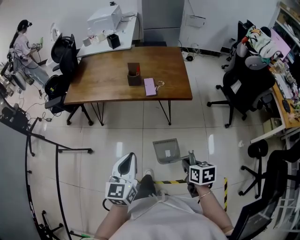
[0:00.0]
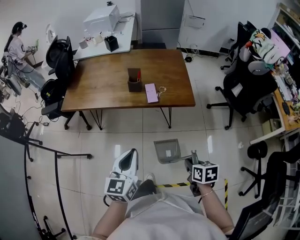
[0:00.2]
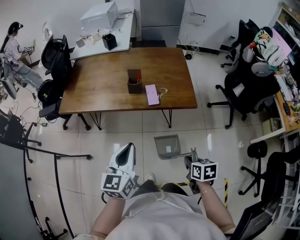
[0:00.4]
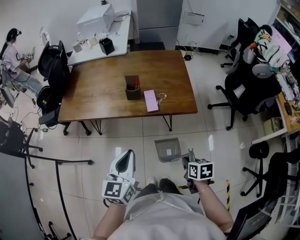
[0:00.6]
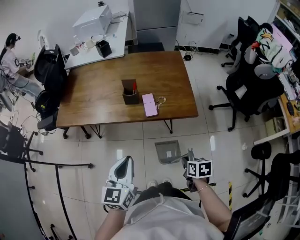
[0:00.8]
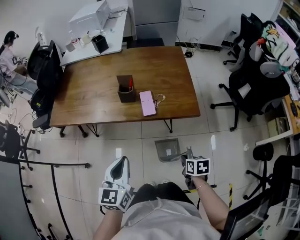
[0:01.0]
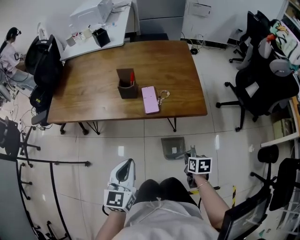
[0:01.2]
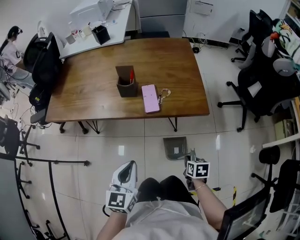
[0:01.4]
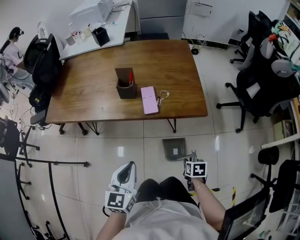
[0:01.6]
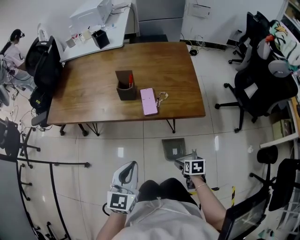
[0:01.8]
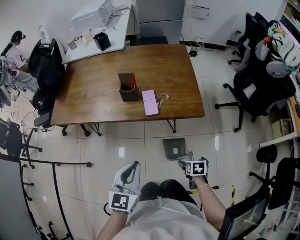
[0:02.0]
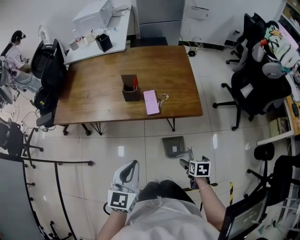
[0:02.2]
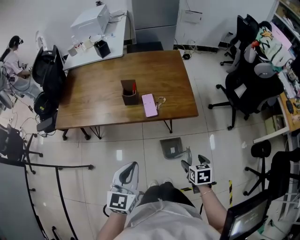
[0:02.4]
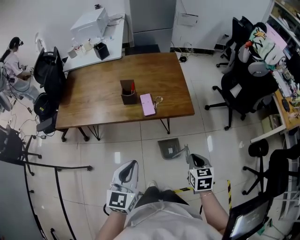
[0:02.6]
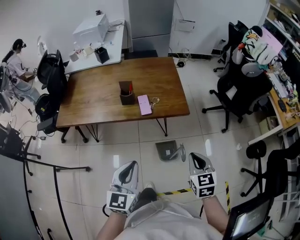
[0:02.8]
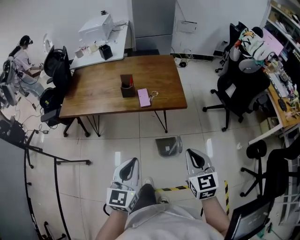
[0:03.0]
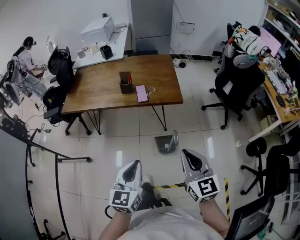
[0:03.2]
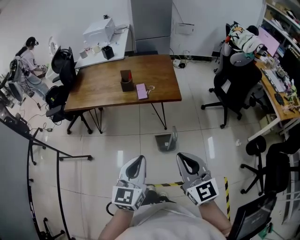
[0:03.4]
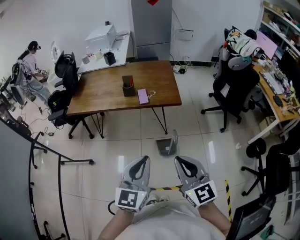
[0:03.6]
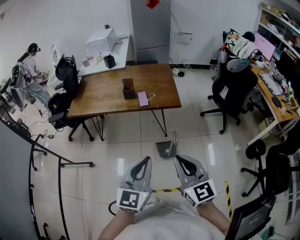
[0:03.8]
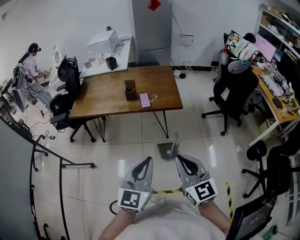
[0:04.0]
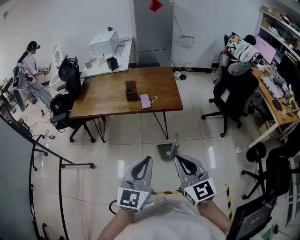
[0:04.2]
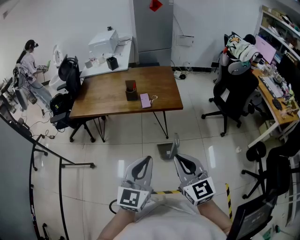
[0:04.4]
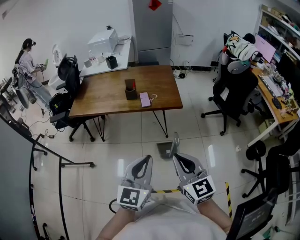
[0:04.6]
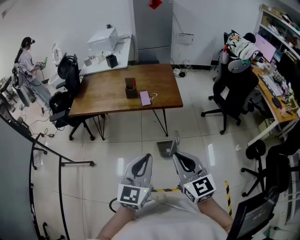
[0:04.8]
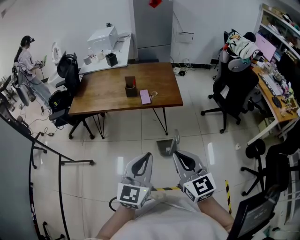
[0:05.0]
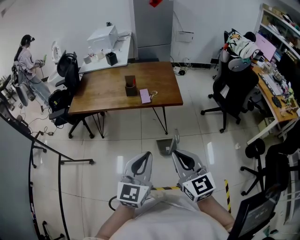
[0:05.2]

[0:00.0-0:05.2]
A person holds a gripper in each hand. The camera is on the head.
0:00.0 to 0:01.8: The left gripper is displaced forward and downward by approximately 20 cm. The right gripper is displaced downward and forward by approximately 30 cm, and opens.
0:01.8 to 0:03.4: The right gripper heads upward and backward, covering some 50 cm, points its fingers some 60 degrees further upward, and closes its fingers. Meanwhile the left gripper moves backward and upward, about 30 cm.
0:03.4 to 0:05.2: The grippers stay close to where they were, moving slightly.

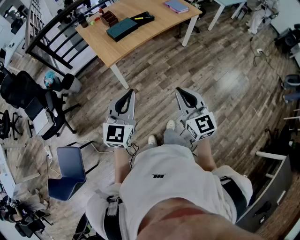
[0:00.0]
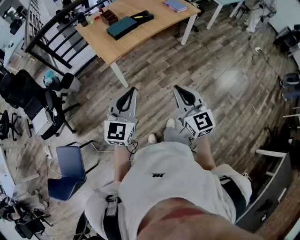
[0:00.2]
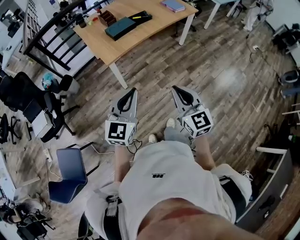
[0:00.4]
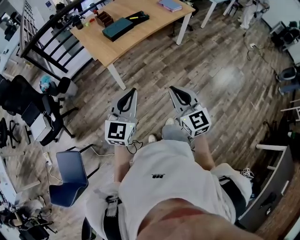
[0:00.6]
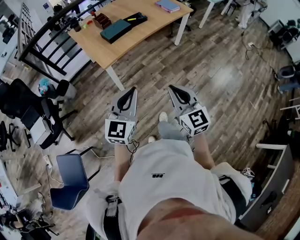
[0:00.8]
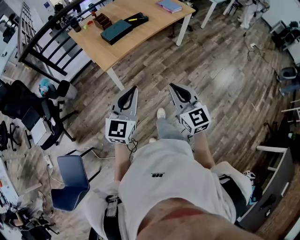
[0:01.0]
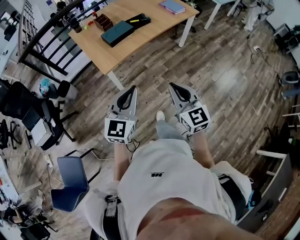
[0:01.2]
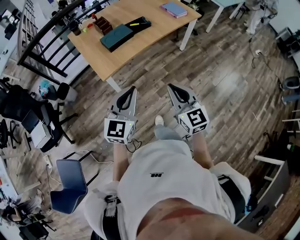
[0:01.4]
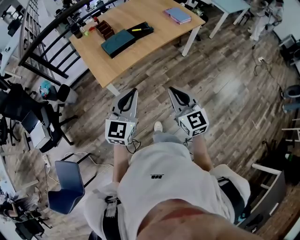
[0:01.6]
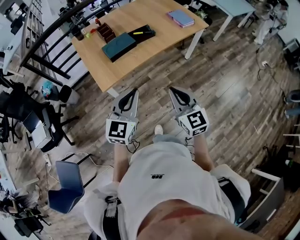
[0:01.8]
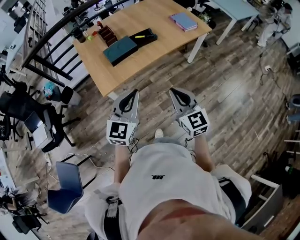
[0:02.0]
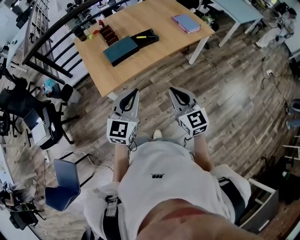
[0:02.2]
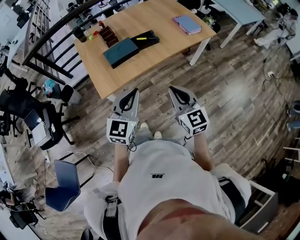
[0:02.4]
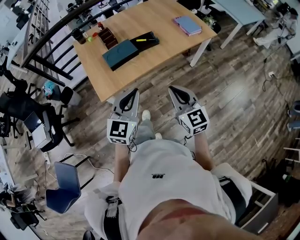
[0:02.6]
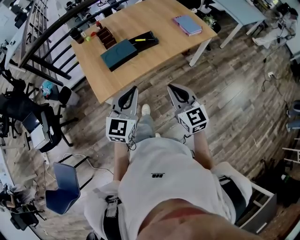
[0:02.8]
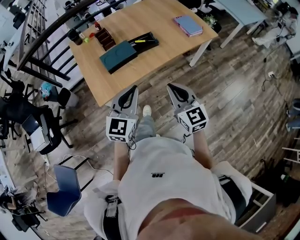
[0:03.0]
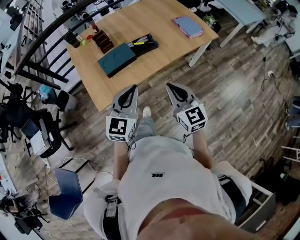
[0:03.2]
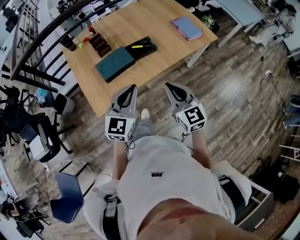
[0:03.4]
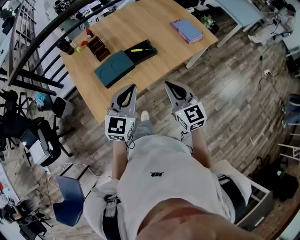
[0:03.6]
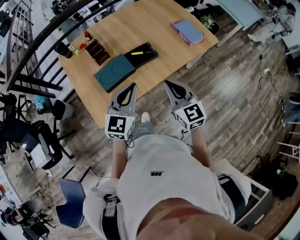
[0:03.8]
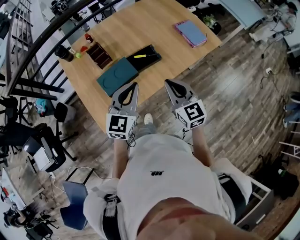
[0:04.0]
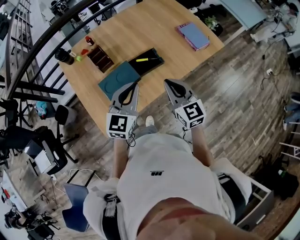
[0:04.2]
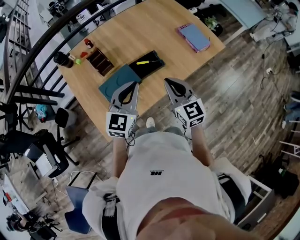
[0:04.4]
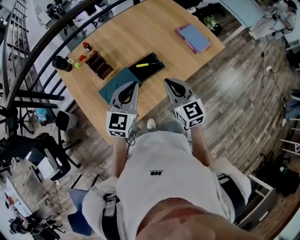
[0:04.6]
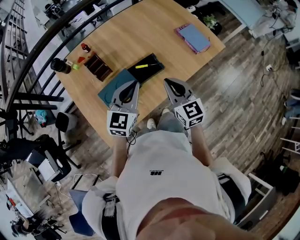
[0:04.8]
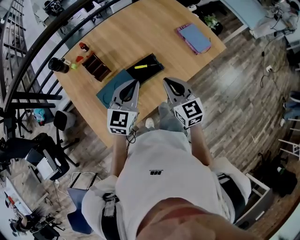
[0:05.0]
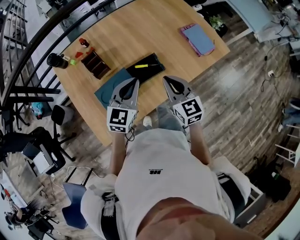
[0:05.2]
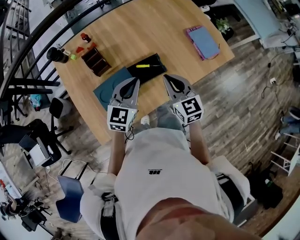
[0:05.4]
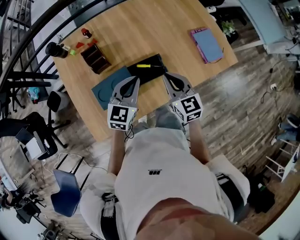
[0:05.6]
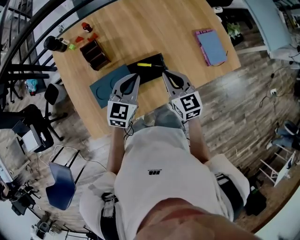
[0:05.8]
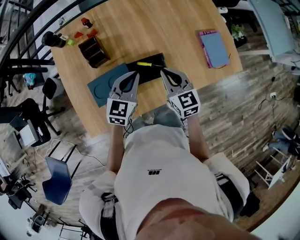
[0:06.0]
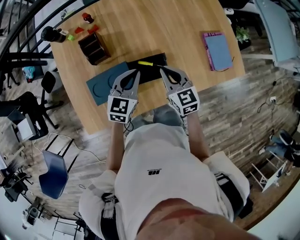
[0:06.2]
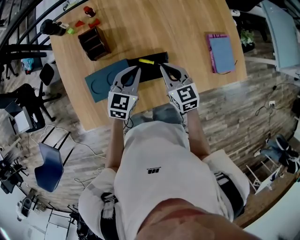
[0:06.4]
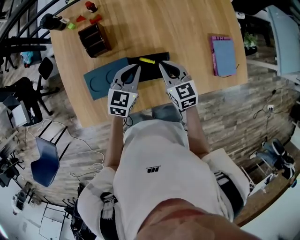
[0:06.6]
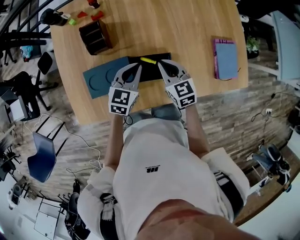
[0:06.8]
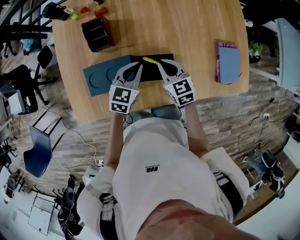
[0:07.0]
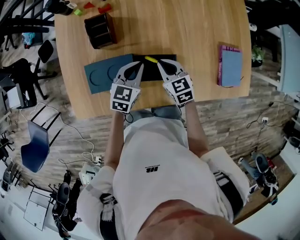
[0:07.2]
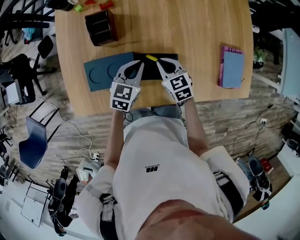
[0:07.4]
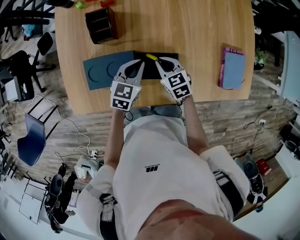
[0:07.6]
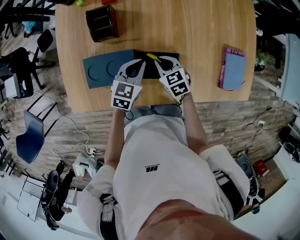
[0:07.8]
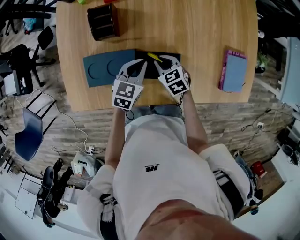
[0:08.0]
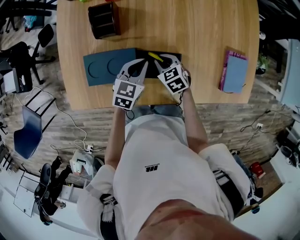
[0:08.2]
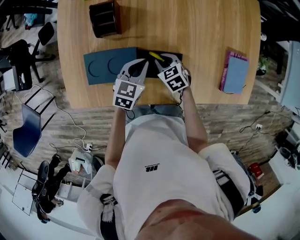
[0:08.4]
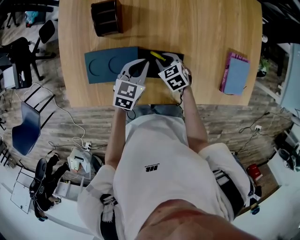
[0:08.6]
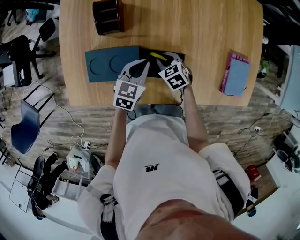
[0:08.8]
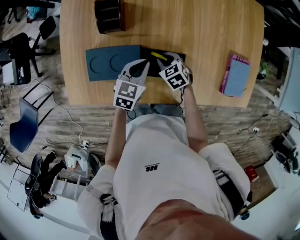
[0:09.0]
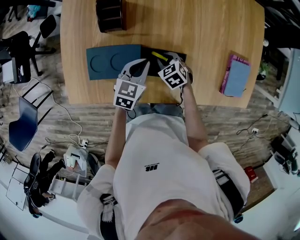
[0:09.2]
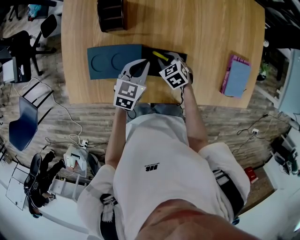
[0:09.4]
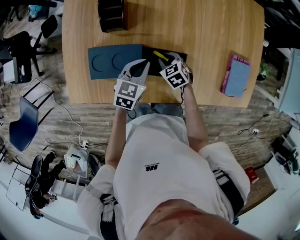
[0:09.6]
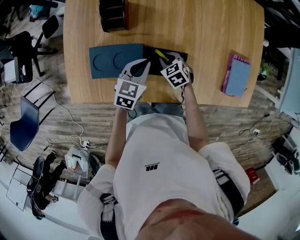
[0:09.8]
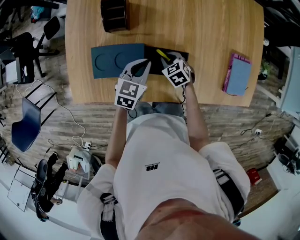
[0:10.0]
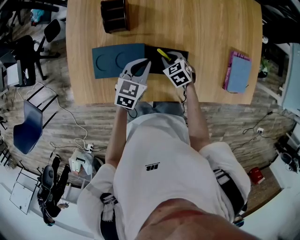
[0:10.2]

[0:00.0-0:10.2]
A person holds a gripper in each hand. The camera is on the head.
0:00.0 to 0:01.4: The grippers both shift forward by approximately 15 cm.
0:01.4 to 0:03.0: The two grippers go some 25 cm forward.
0:03.0 to 0:04.4: The grippers both shift forward by about 30 cm.
0:04.4 to 0:05.8: The grippers both shift forward and downward by some 20 cm.
0:05.8 to 0:07.2: The grippers both shift downward and forward by roughly 15 cm. The right gripper rotates some 30 degrees. The left gripper swivels about 20 degrees.
0:07.2 to 0:08.8: The right gripper shifts roughly 10 cm downward, and turns by about 30 degrees.
0:08.8 to 0:10.2: The grippers stay close to where they were, moving slightly.

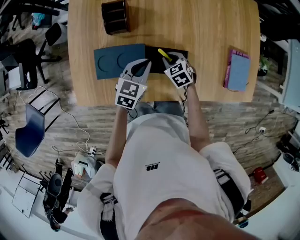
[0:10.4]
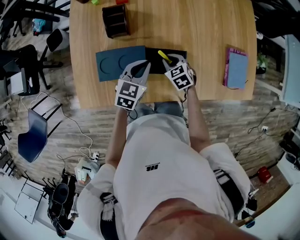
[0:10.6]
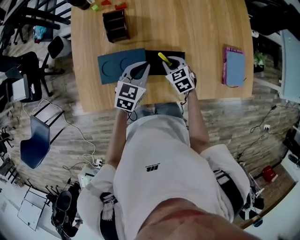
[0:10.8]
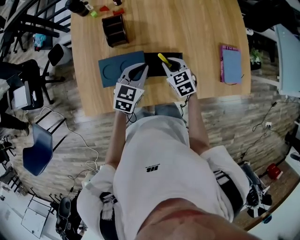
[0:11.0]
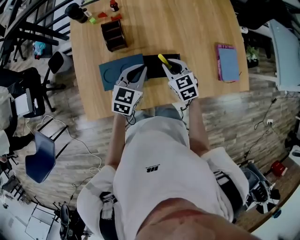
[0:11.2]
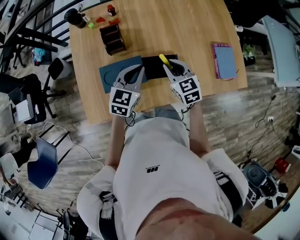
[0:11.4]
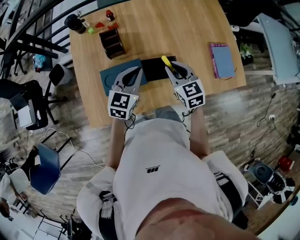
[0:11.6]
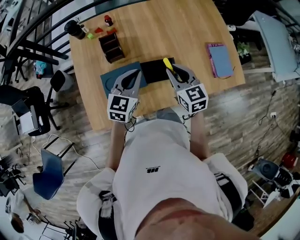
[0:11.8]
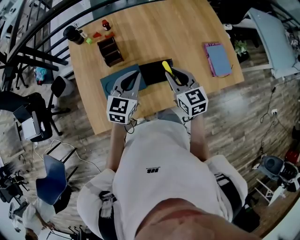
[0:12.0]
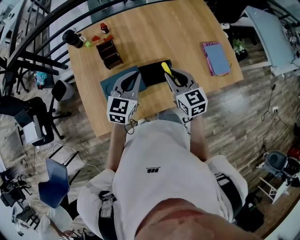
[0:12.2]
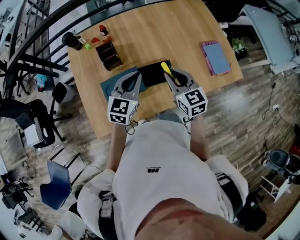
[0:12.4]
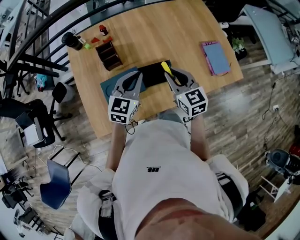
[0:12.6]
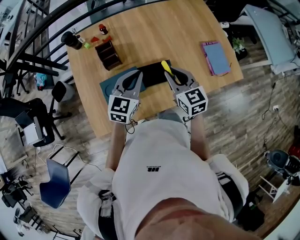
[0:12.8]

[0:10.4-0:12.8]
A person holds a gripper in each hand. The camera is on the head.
0:10.4 to 0:11.6: The left gripper travels upward by some 15 cm, while the right gripper travels upward by roughly 25 cm, and changes its angle by about 30 degrees.
0:11.6 to 0:12.8: The right gripper travels upward by some 5 cm.

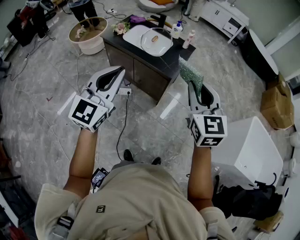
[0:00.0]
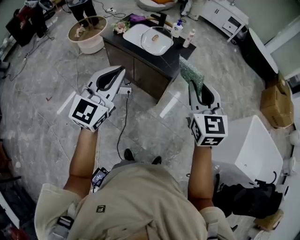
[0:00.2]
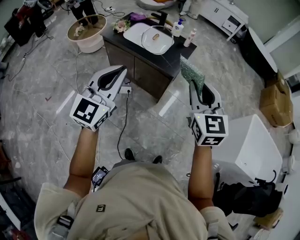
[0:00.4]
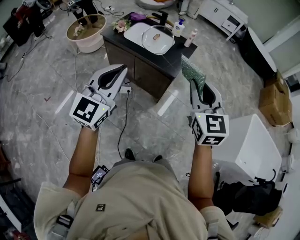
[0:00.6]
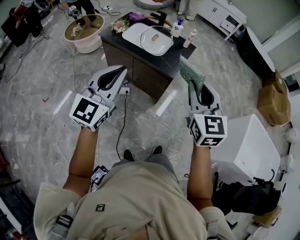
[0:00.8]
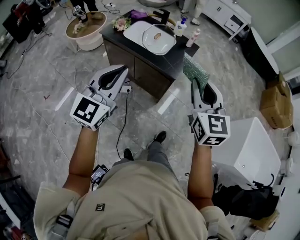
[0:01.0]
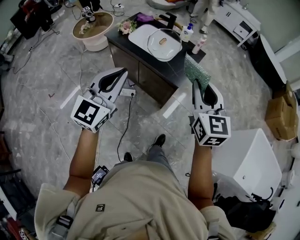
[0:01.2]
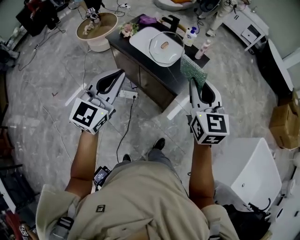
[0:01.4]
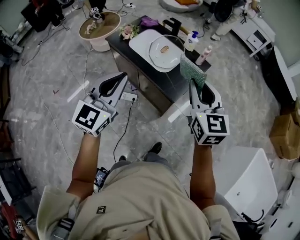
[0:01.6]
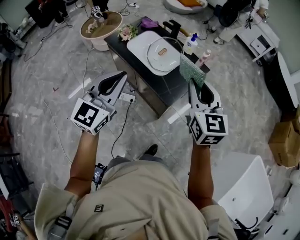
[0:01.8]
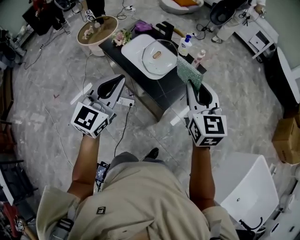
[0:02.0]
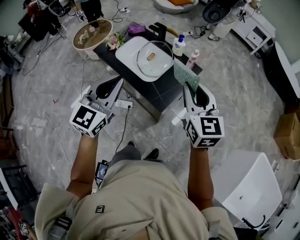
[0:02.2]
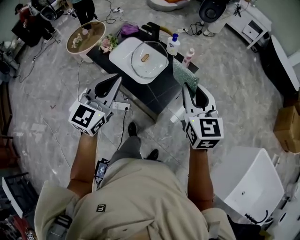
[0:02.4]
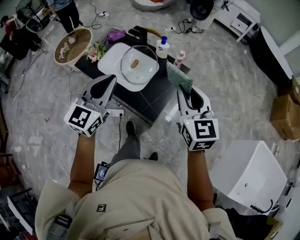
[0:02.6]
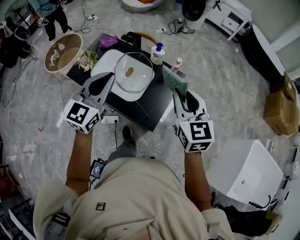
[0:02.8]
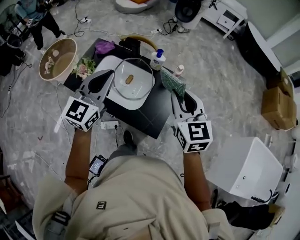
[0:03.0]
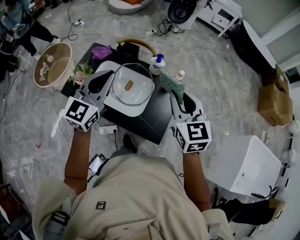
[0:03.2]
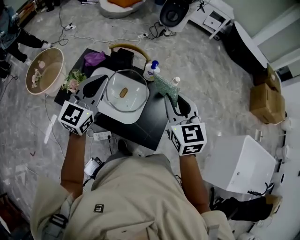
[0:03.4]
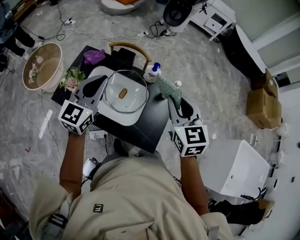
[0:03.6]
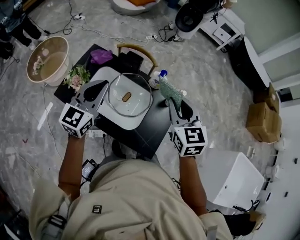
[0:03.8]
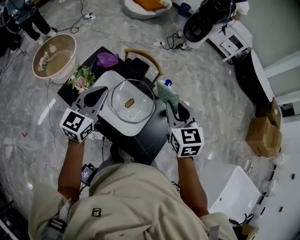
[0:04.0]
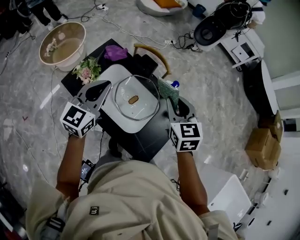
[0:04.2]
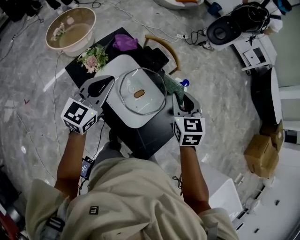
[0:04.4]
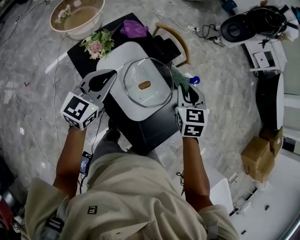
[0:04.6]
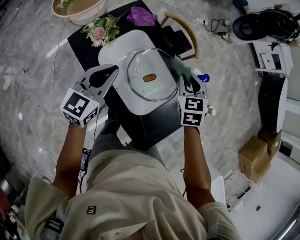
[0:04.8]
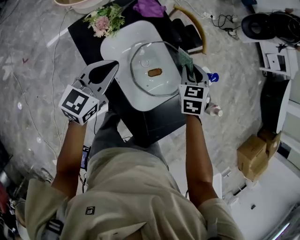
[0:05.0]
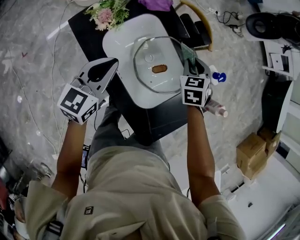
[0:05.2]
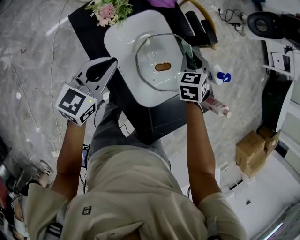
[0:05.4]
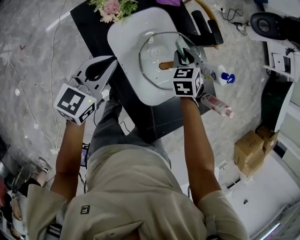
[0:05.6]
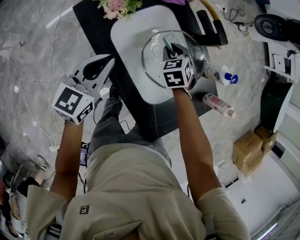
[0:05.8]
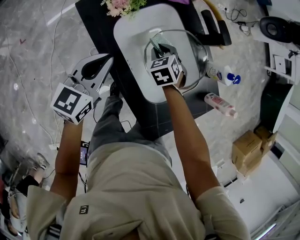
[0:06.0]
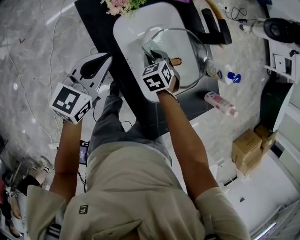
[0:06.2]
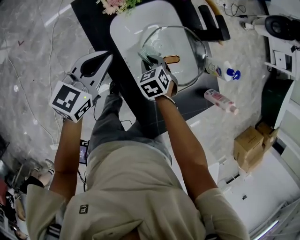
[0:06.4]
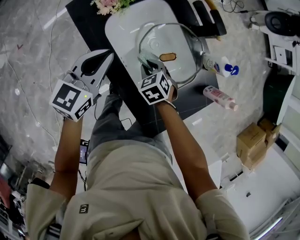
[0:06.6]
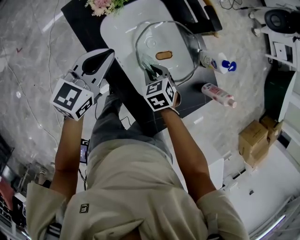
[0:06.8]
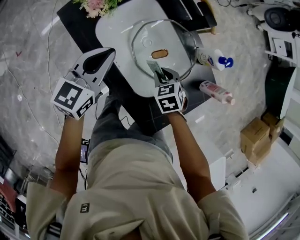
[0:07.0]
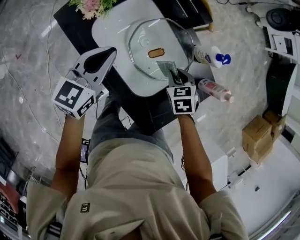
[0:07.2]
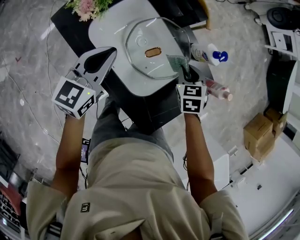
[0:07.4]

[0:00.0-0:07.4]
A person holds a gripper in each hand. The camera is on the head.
0:00.0 to 0:01.4: Both grippers travel together forward, about 15 cm.
0:01.4 to 0:03.0: Both grippers travel together forward, approximately 35 cm.
0:03.0 to 0:04.4: The right gripper moves forward, to the left and downward, some 25 cm, and swivels approximately 20 degrees; the left gripper moves to the left, forward and downward, about 20 cm, and rotates about 20 degrees.
0:04.4 to 0:06.0: The left gripper is displaced downward and to the left by roughly 20 cm, and rotates some 20 degrees. The right gripper goes roughly 40 cm downward and to the left, and changes its angle by some 40 degrees.
0:06.0 to 0:07.4: The left gripper shifts roughly 10 cm to the right, while the right gripper heads to the right, covering some 25 cm, and turns by some 20 degrees.
